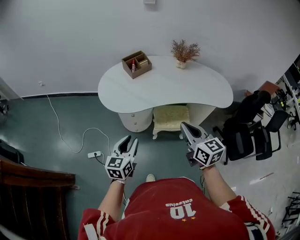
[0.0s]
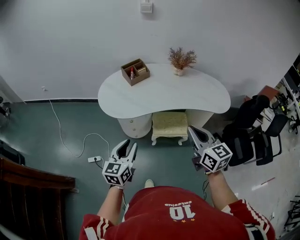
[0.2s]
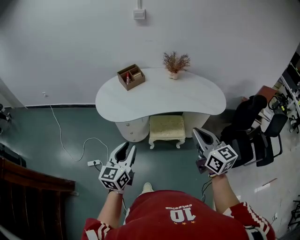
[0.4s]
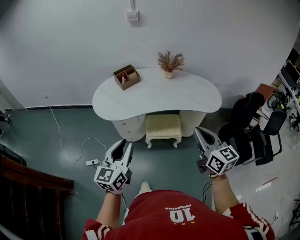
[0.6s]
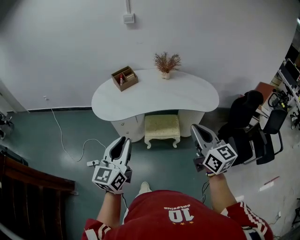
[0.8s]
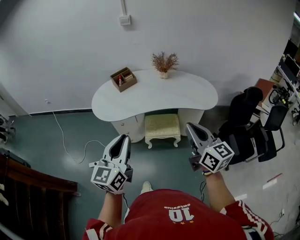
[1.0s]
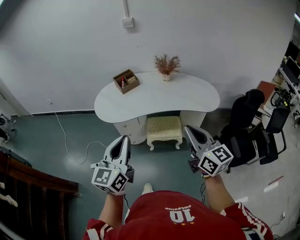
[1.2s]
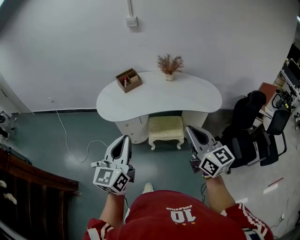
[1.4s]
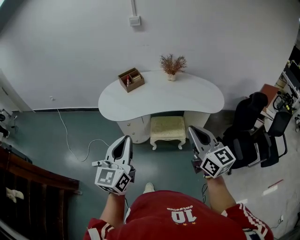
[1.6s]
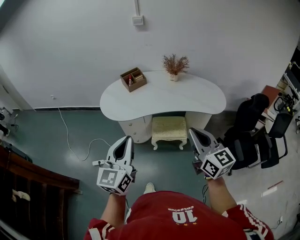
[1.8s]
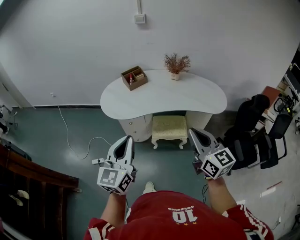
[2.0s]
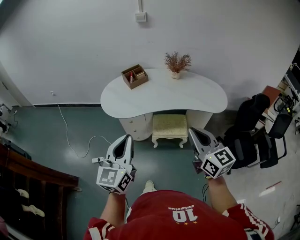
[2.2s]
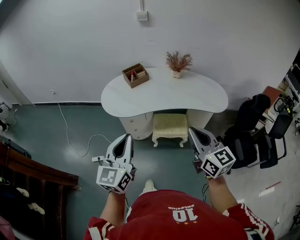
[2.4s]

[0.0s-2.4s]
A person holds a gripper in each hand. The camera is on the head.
0.0s to 1.2s: The right gripper heads to the right, backward and upward, covering some 25 cm, while the left gripper shifts approximately 30 cm upward, to the right and backward, changes its angle by about 20 degrees, and closes.
1.2s to 2.4s: The right gripper moves about 5 cm. The left gripper travels to the left by roughly 5 cm.

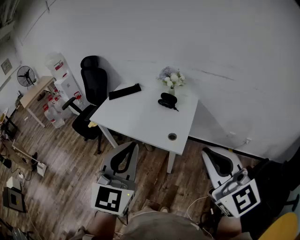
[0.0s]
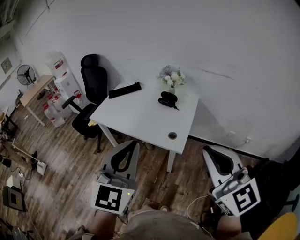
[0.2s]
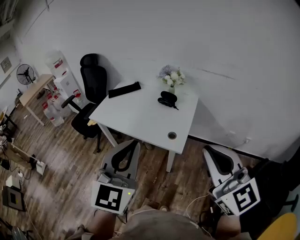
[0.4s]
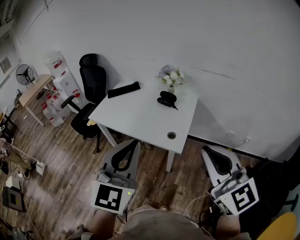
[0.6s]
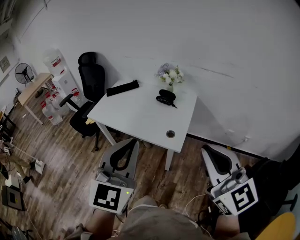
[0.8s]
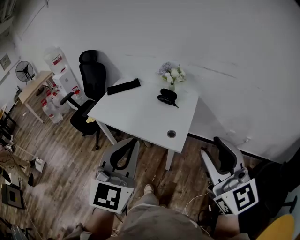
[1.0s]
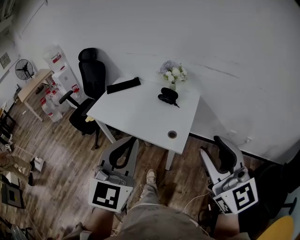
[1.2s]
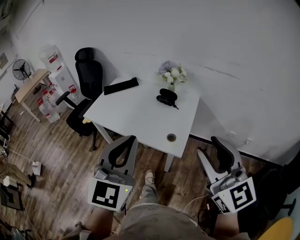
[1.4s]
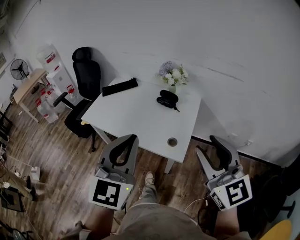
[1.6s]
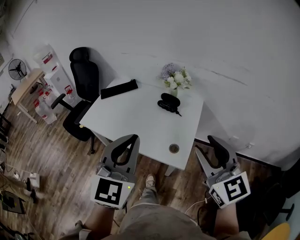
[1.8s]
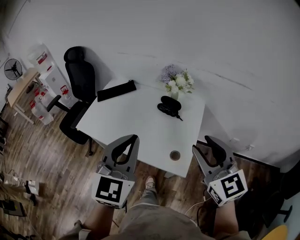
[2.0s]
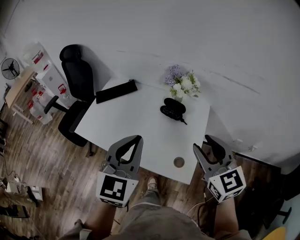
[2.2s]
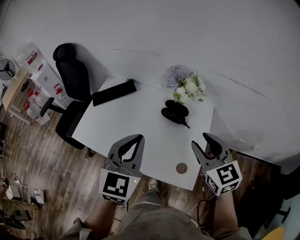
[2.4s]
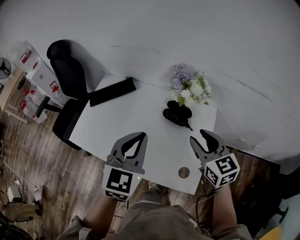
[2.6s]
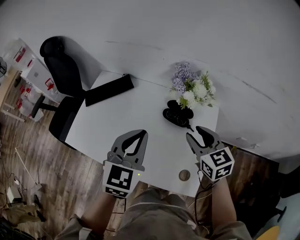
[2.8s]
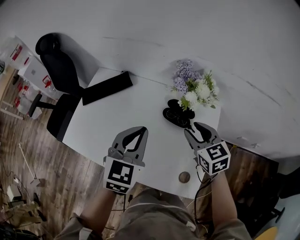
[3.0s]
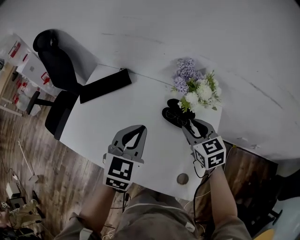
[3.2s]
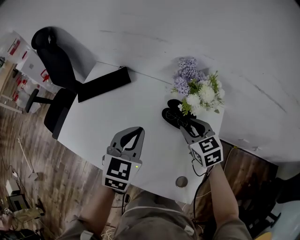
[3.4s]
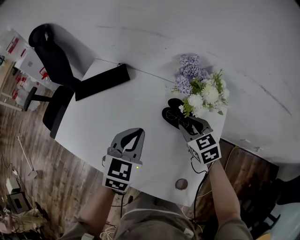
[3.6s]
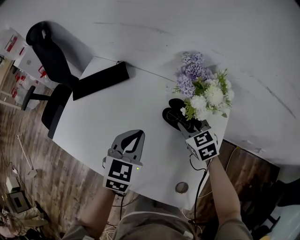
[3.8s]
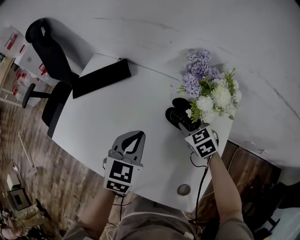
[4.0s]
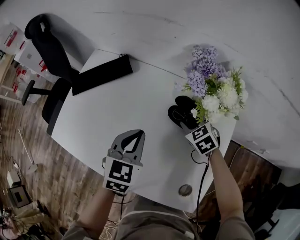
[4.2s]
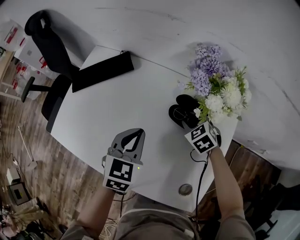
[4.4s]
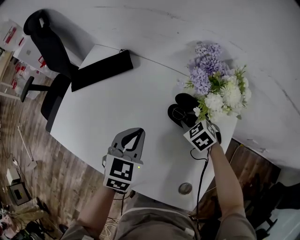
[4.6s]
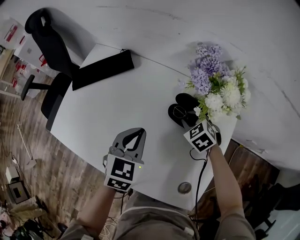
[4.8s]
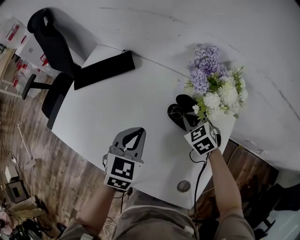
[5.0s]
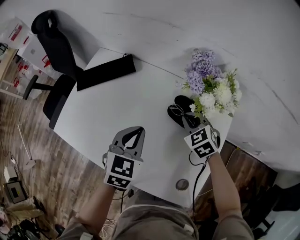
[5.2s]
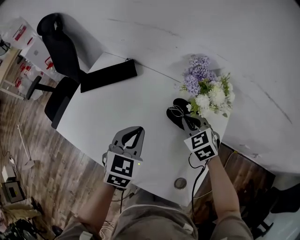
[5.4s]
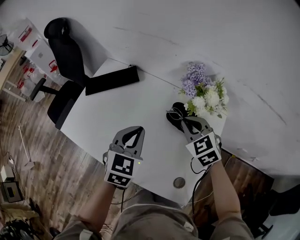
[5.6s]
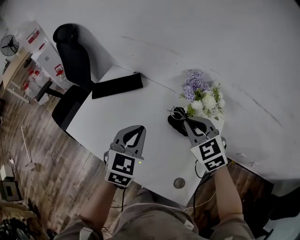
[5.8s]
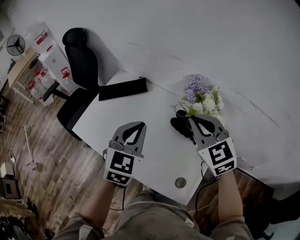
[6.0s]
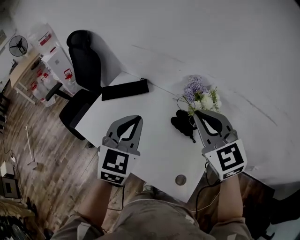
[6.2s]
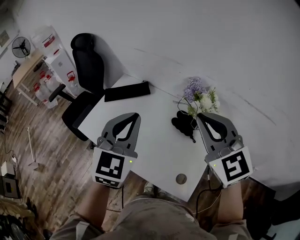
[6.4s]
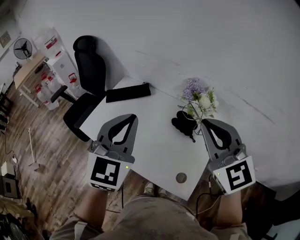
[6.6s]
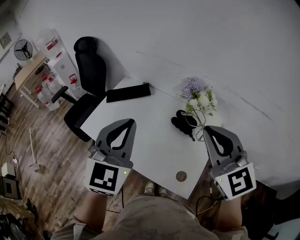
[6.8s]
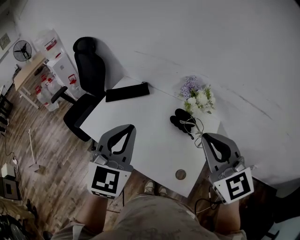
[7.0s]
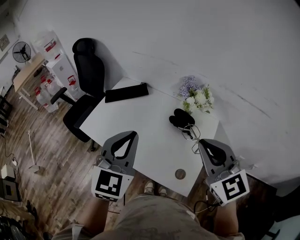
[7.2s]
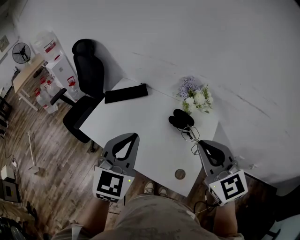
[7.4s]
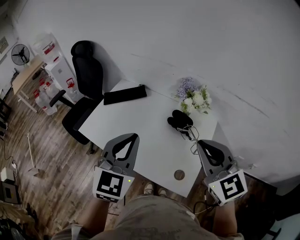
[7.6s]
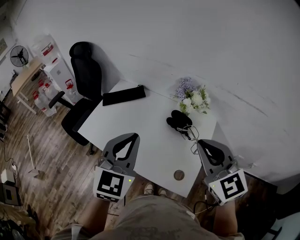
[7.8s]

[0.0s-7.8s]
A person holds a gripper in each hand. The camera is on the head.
0.0s to 1.6s: The right gripper is displaced forward and downward by some 15 cm, and opens up. The left gripper goes about 15 cm forward.
1.6s to 3.2s: The two grippers travel together, forward, about 40 cm. The two grippers go roughly 25 cm downward. The right gripper tilts its fingers about 30 degrees downward. Meanwhile the left gripper rotates about 30 degrees.
3.2s to 4.6s: Both grippers move downward, some 15 cm. The right gripper rotates approximately 30 degrees.
4.6s to 6.2s: The left gripper goes approximately 25 cm upward, and turns by roughly 20 degrees, while the right gripper shifts about 40 cm upward, points its fingers some 50 degrees further upward, and closes its fingers.
6.2s to 7.8s: Both grippers travel together backward, some 15 cm.

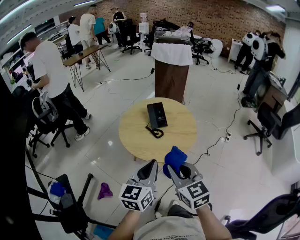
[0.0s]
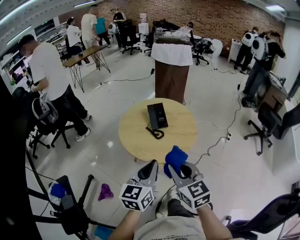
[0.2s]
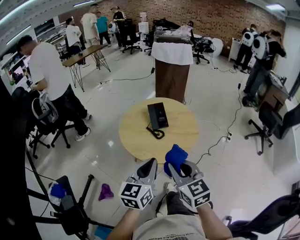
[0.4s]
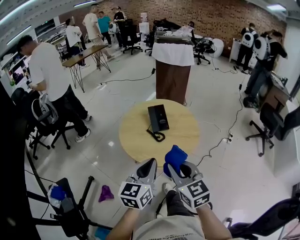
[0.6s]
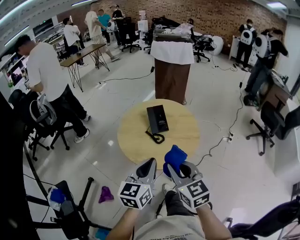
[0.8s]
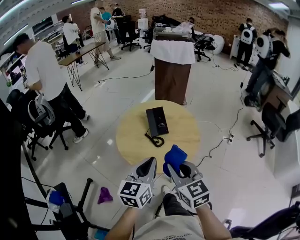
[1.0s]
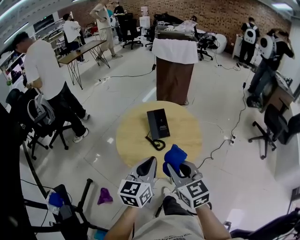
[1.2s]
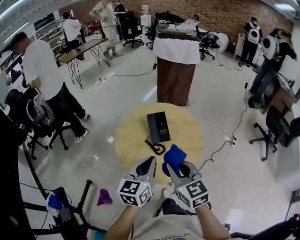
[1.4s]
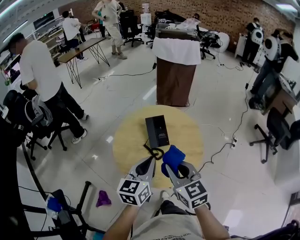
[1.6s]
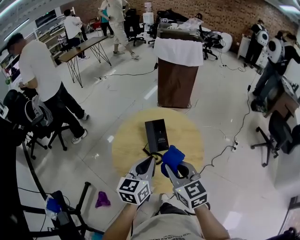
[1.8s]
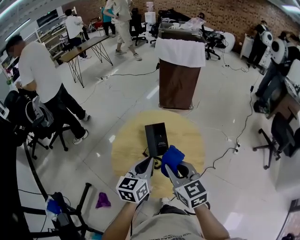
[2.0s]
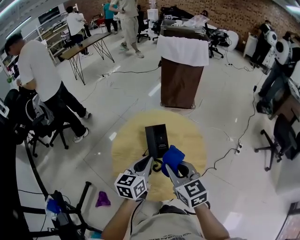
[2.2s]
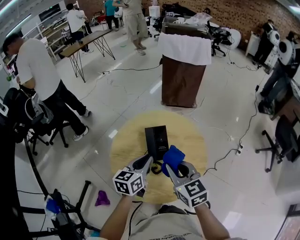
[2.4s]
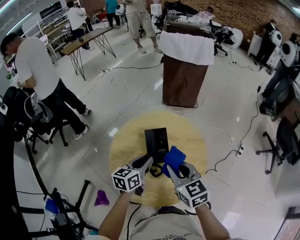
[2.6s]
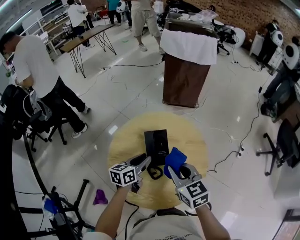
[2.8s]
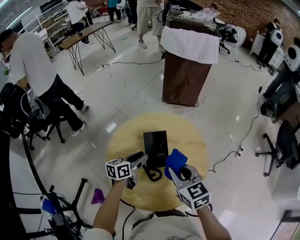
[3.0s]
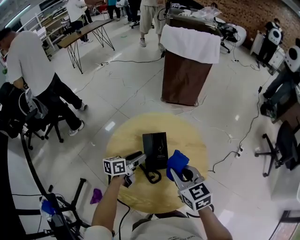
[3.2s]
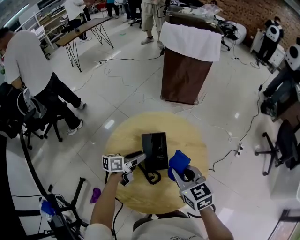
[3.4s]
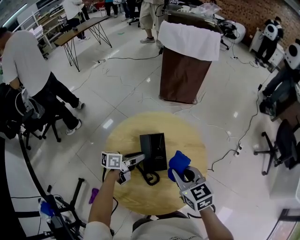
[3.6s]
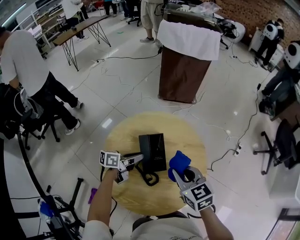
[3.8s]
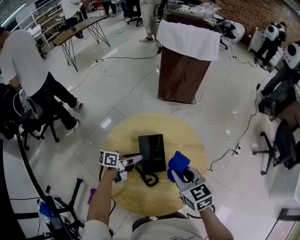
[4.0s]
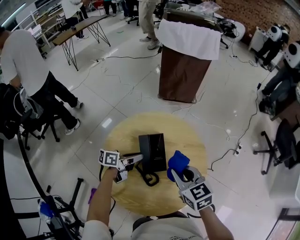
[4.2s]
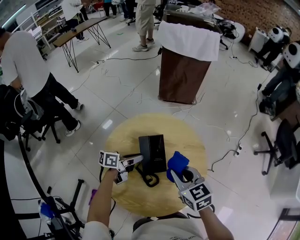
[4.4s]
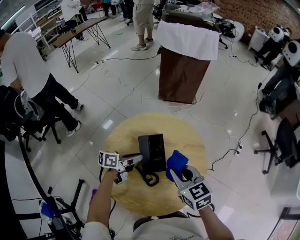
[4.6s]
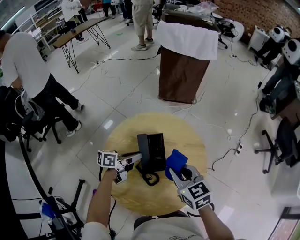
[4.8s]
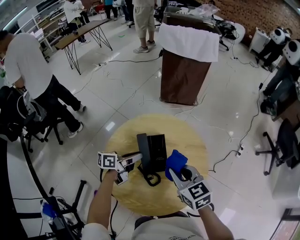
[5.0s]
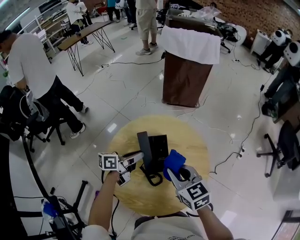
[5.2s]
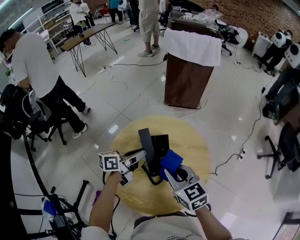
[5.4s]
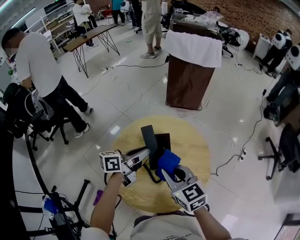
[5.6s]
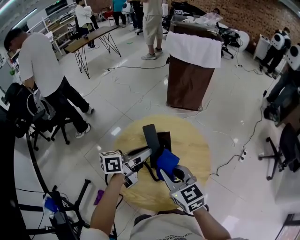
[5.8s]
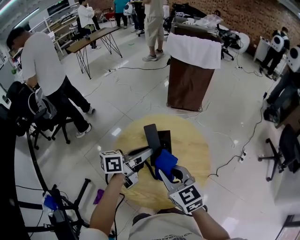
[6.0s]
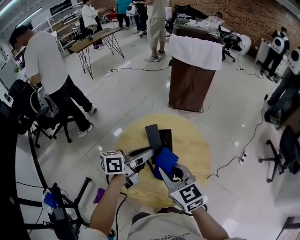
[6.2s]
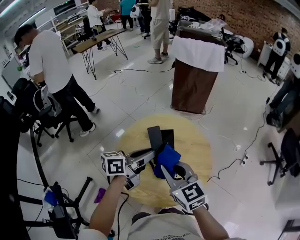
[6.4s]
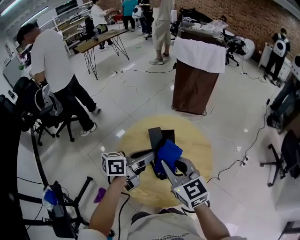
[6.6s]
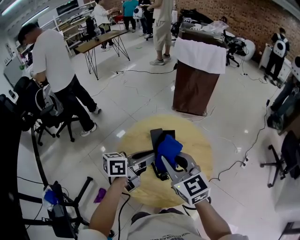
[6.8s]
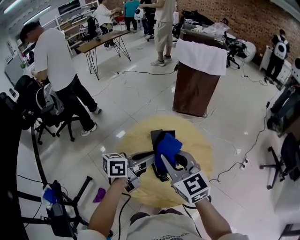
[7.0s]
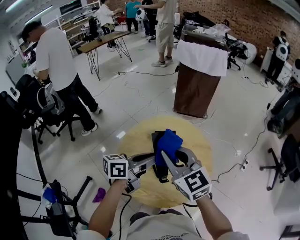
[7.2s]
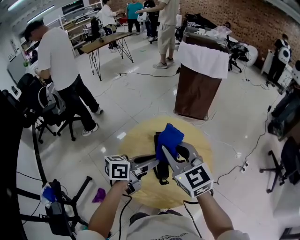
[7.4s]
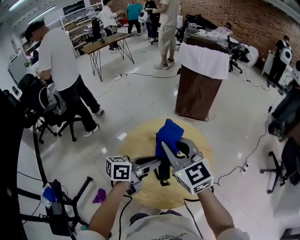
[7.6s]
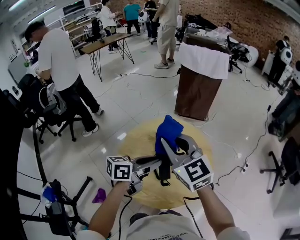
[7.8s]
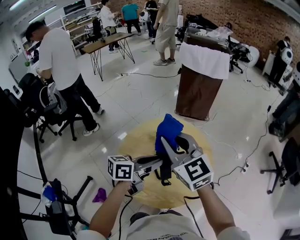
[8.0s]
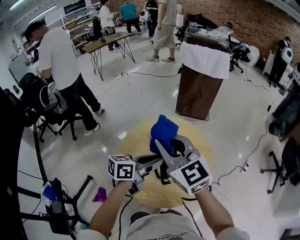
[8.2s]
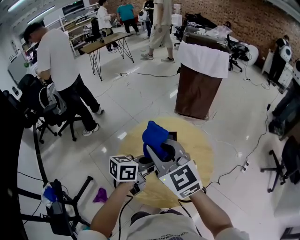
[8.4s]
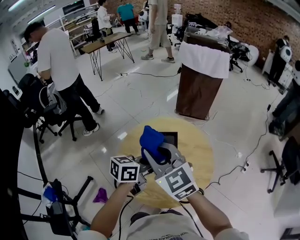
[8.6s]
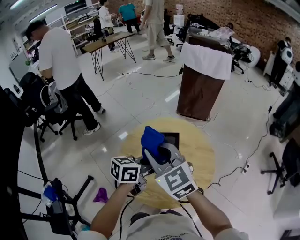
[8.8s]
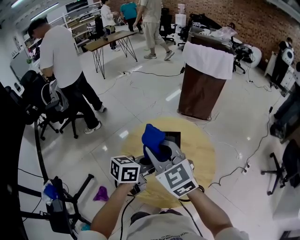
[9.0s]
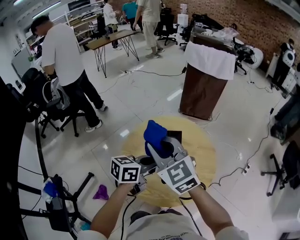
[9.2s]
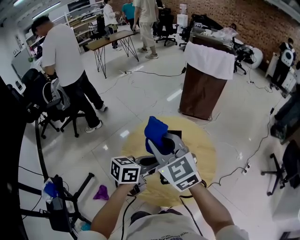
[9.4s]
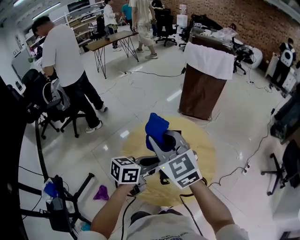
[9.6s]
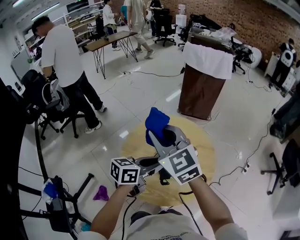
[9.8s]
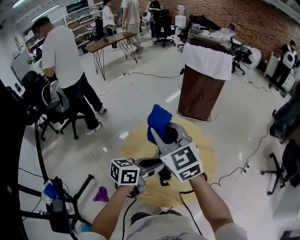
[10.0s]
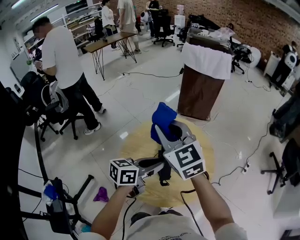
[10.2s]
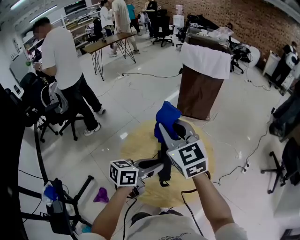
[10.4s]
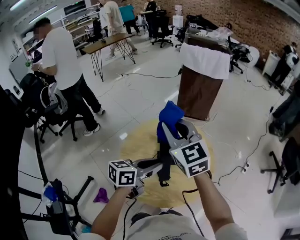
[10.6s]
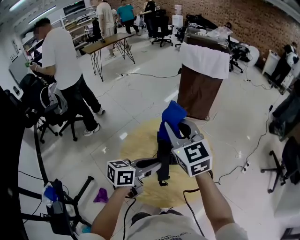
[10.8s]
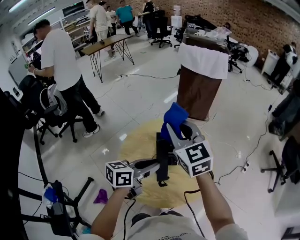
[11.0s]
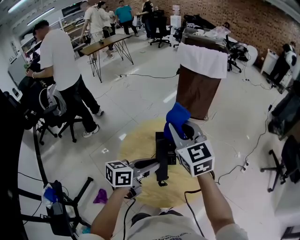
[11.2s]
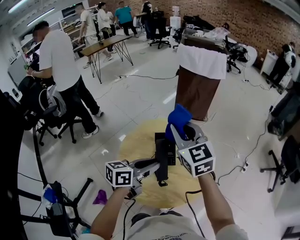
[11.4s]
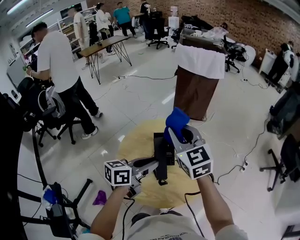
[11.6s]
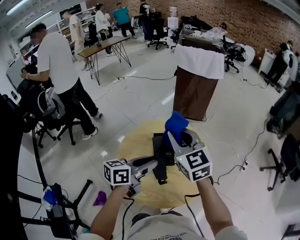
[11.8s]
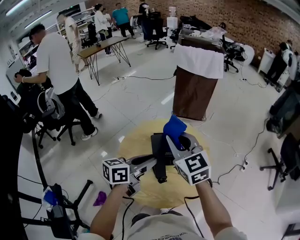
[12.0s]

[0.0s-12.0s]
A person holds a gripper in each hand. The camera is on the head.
0.0s to 1.6s: Both grippers travel together forward, approximately 20 cm.
1.6s to 3.0s: The left gripper heads forward and downward, covering roughly 25 cm, swivels some 30 degrees, and opens up, while the right gripper moves forward and downward, roughly 15 cm.
3.0s to 4.4s: The left gripper swivels about 30 degrees.
4.4s to 6.0s: The right gripper goes some 10 cm upward, backward and to the left. The left gripper travels upward by some 20 cm, and changes its angle by about 20 degrees.
6.0s to 7.6s: The right gripper is displaced upward by approximately 10 cm. The left gripper goes roughly 5 cm backward.
7.6s to 9.0s: The right gripper heads to the left, covering roughly 5 cm.
9.0s to 10.4s: The right gripper shifts roughly 5 cm forward.
10.4s to 12.0s: The right gripper is displaced downward by approximately 5 cm.

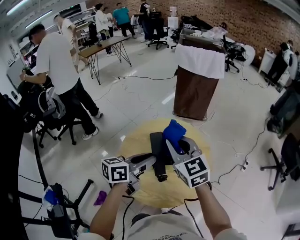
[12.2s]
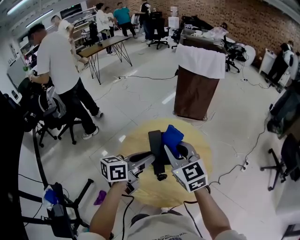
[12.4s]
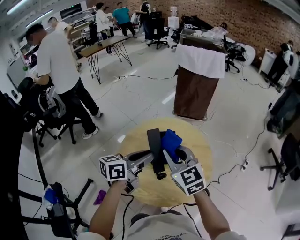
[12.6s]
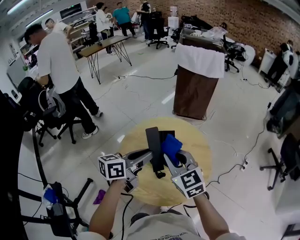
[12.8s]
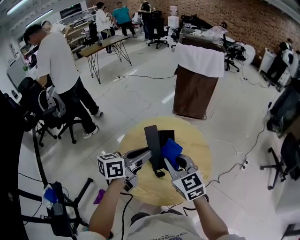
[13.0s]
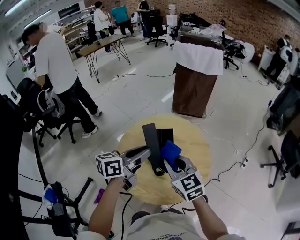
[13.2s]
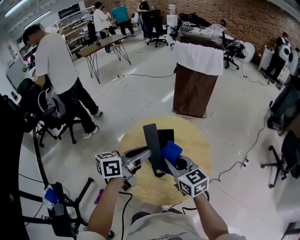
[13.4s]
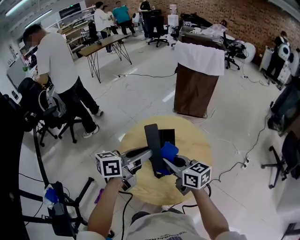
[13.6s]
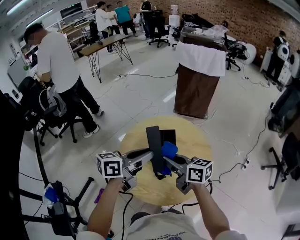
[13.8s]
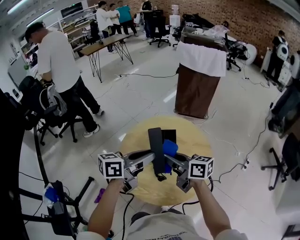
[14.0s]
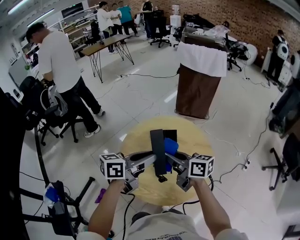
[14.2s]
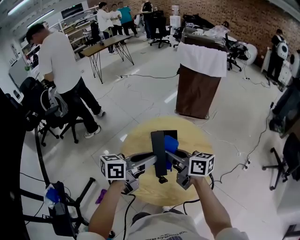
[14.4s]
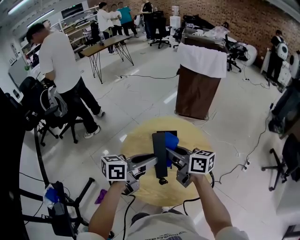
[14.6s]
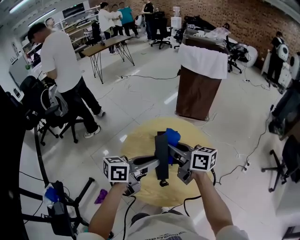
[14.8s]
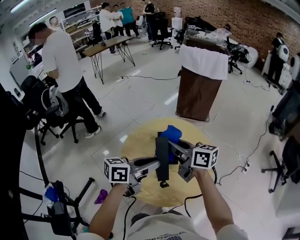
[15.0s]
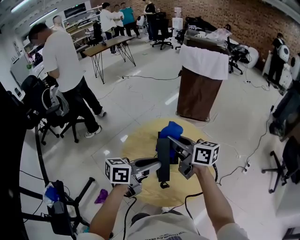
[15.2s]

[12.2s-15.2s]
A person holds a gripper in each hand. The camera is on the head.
12.2s to 13.8s: The right gripper goes about 10 cm downward, and rotates around the line of its fingers by some 40 degrees, clockwise from behind.
13.8s to 15.2s: The right gripper is displaced upward and forward by about 10 cm.
